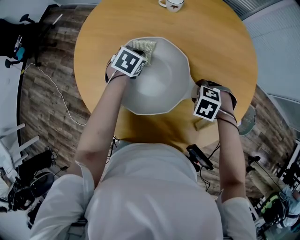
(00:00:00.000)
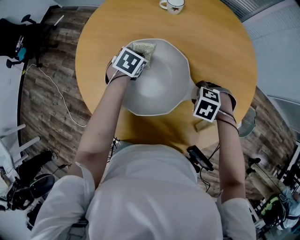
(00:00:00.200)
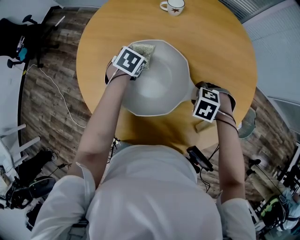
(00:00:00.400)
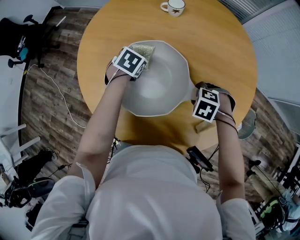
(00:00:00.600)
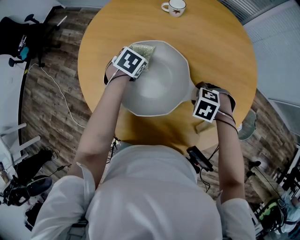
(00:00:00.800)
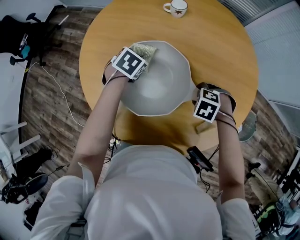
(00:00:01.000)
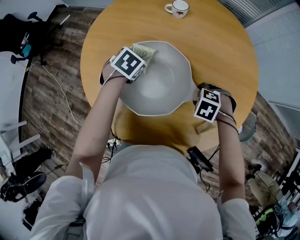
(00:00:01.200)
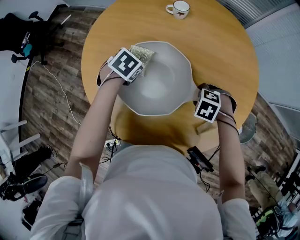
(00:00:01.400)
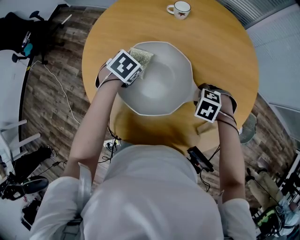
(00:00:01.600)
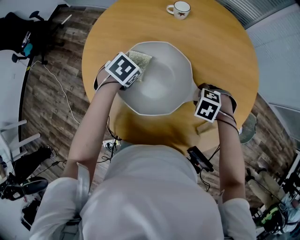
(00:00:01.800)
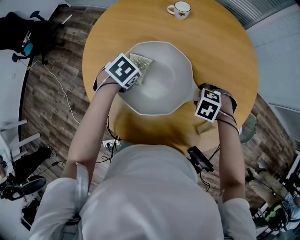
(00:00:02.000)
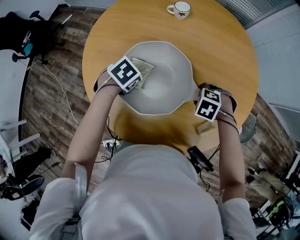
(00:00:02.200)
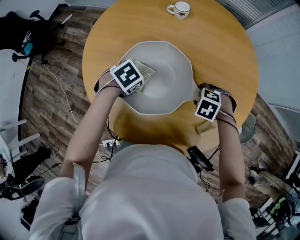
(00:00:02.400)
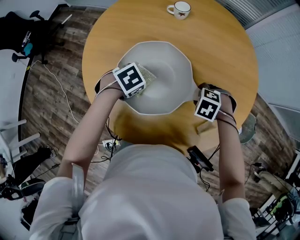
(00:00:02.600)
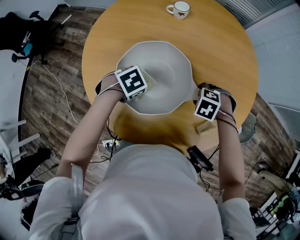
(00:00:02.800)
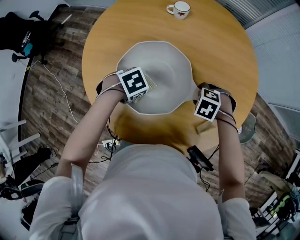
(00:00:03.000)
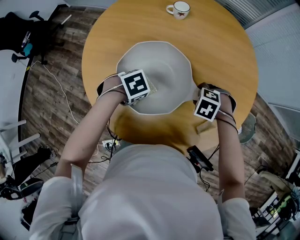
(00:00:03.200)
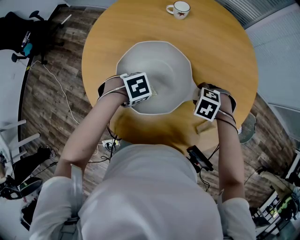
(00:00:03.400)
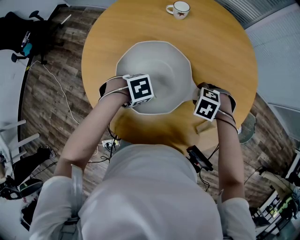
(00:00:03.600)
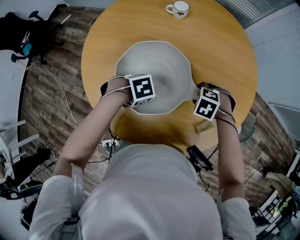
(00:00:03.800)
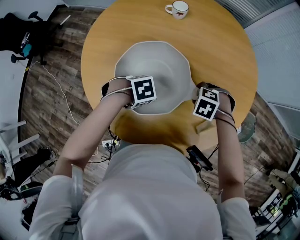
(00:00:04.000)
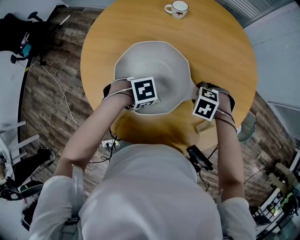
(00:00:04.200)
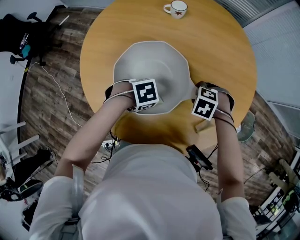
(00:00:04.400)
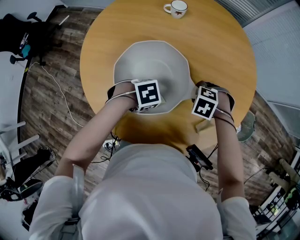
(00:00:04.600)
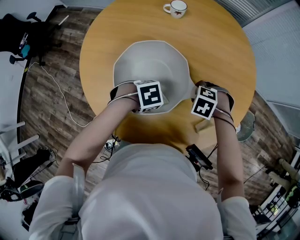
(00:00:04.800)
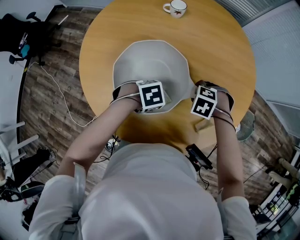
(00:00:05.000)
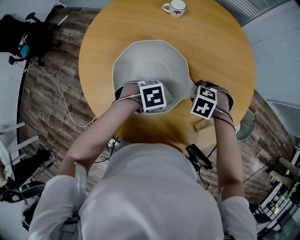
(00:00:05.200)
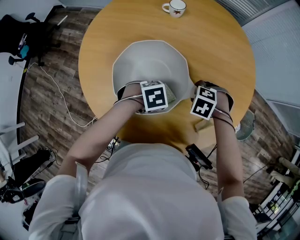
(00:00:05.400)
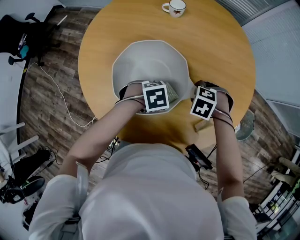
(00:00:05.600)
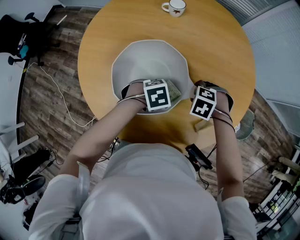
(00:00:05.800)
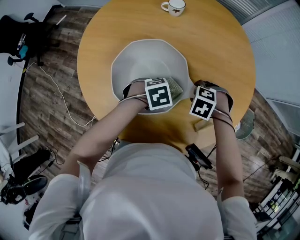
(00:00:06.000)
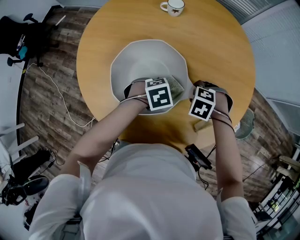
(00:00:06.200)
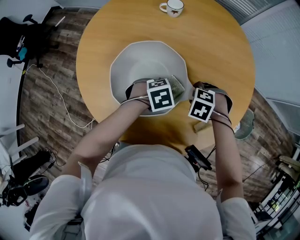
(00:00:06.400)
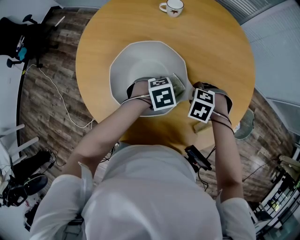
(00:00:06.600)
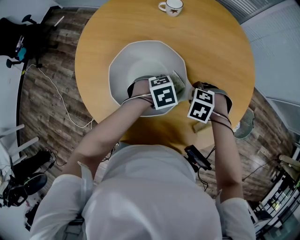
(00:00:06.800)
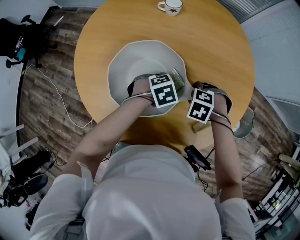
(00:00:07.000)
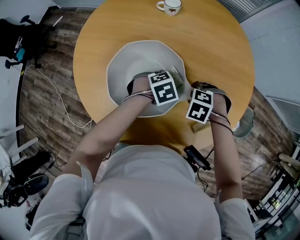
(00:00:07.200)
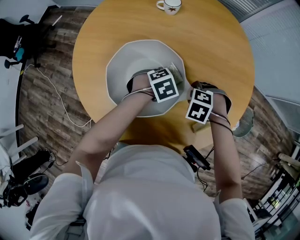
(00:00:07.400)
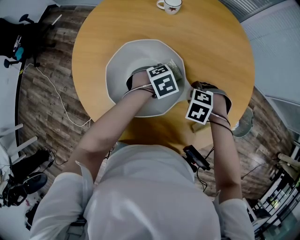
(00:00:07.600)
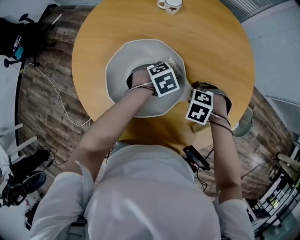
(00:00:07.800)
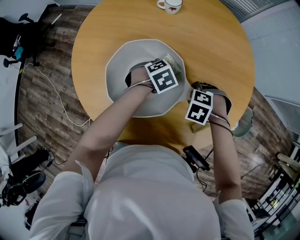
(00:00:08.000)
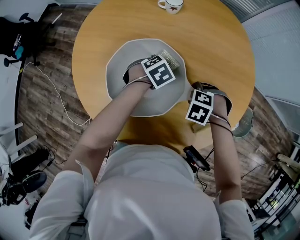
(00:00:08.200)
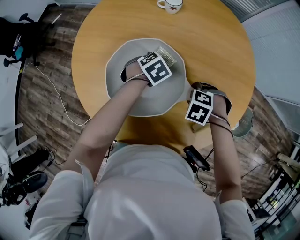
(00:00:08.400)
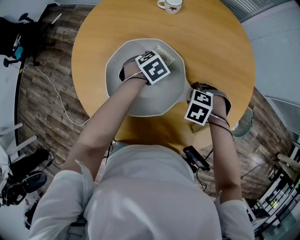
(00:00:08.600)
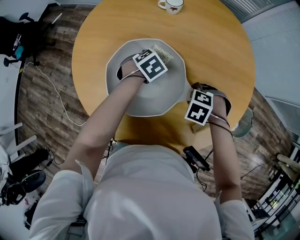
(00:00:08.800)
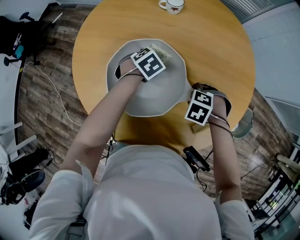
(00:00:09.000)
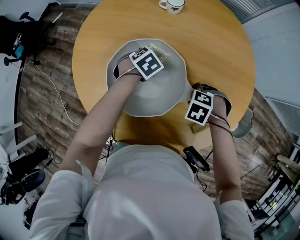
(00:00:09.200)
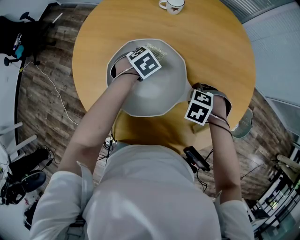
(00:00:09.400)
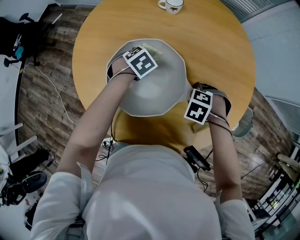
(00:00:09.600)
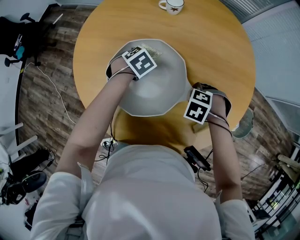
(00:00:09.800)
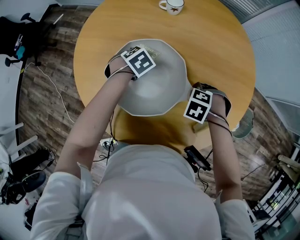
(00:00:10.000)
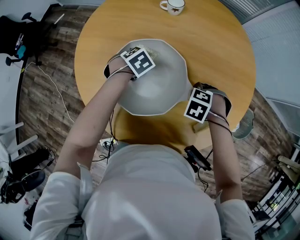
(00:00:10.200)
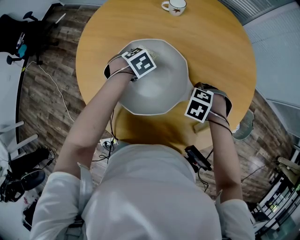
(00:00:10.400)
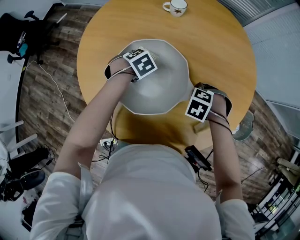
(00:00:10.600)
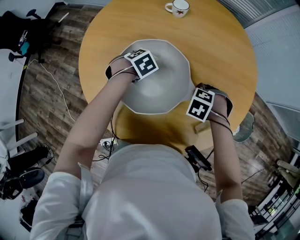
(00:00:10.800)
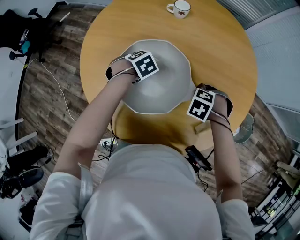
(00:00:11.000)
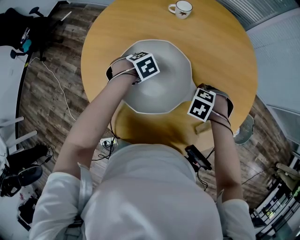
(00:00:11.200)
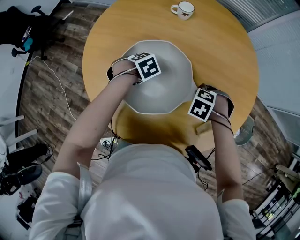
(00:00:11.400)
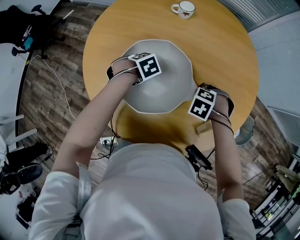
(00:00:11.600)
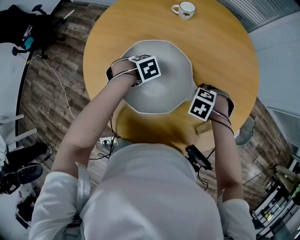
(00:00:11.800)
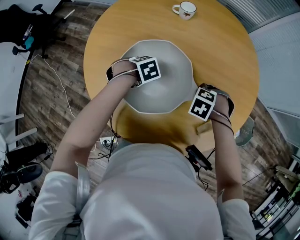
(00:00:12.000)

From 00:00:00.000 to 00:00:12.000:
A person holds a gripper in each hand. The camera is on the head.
From 00:00:00.000 to 00:00:01.600: The left gripper shifts by approximately 5 cm.
From 00:00:01.600 to 00:00:03.000: The left gripper moves roughly 10 cm, and rotates roughly 30 degrees.
From 00:00:03.000 to 00:00:04.400: The left gripper changes place by roughly 5 cm.
From 00:00:04.400 to 00:00:06.000: The left gripper moves approximately 10 cm.
From 00:00:06.000 to 00:00:07.600: The left gripper moves roughly 10 cm.
From 00:00:07.600 to 00:00:09.000: The left gripper shifts by approximately 10 cm.
From 00:00:09.000 to 00:00:10.400: The left gripper ends up approximately 5 cm from where it was.
From 00:00:10.400 to 00:00:12.000: The left gripper changes place by some 5 cm.

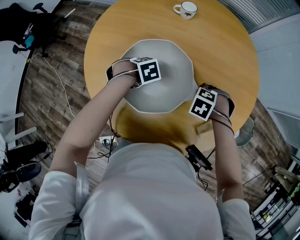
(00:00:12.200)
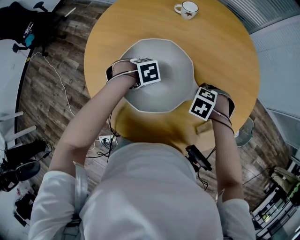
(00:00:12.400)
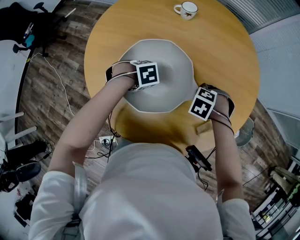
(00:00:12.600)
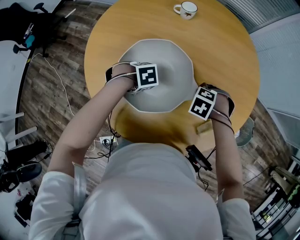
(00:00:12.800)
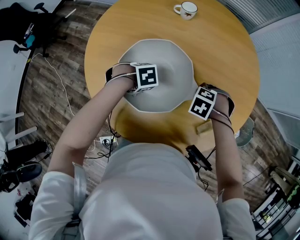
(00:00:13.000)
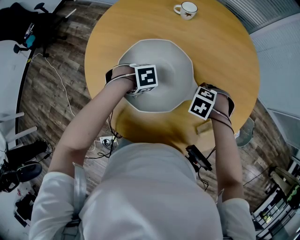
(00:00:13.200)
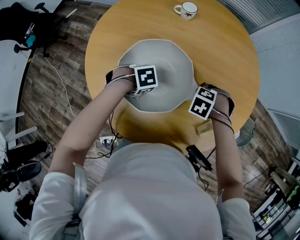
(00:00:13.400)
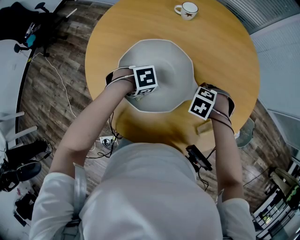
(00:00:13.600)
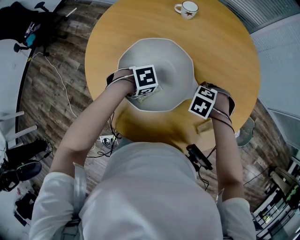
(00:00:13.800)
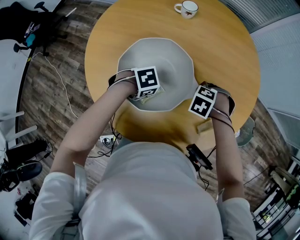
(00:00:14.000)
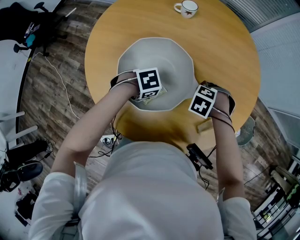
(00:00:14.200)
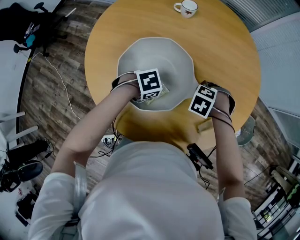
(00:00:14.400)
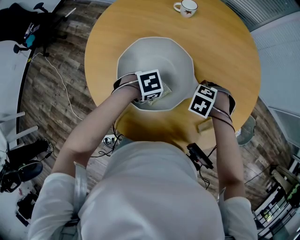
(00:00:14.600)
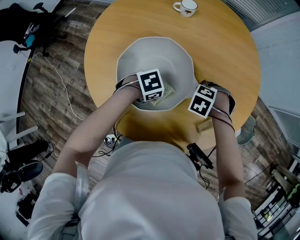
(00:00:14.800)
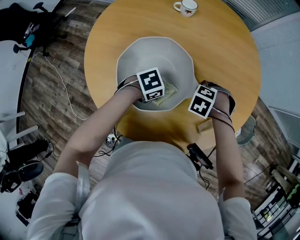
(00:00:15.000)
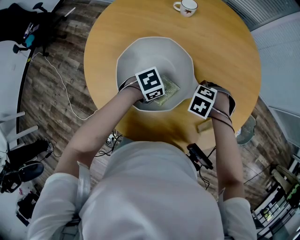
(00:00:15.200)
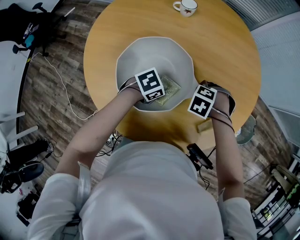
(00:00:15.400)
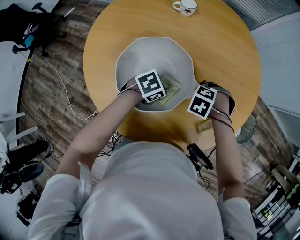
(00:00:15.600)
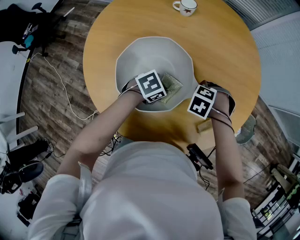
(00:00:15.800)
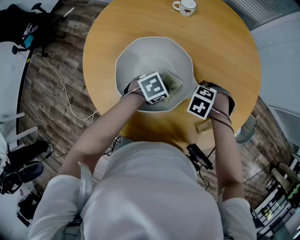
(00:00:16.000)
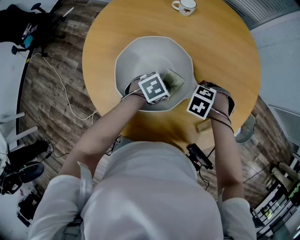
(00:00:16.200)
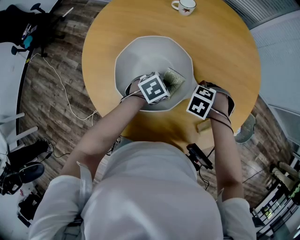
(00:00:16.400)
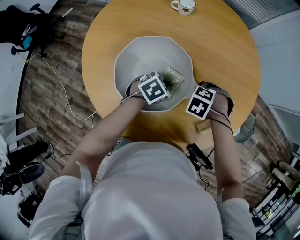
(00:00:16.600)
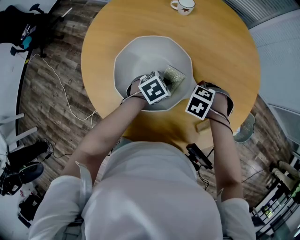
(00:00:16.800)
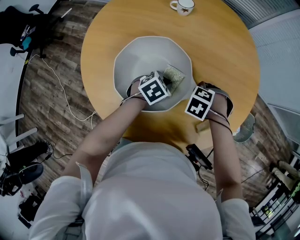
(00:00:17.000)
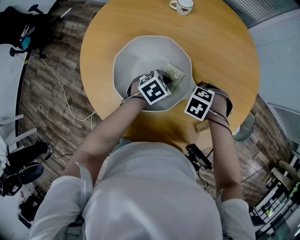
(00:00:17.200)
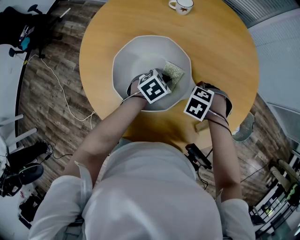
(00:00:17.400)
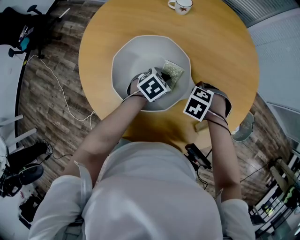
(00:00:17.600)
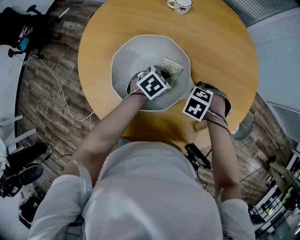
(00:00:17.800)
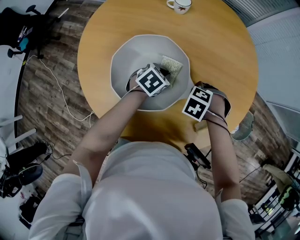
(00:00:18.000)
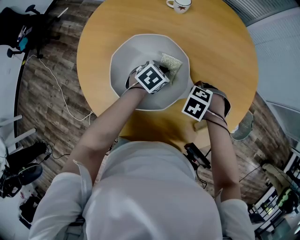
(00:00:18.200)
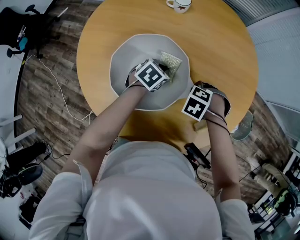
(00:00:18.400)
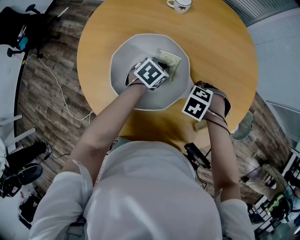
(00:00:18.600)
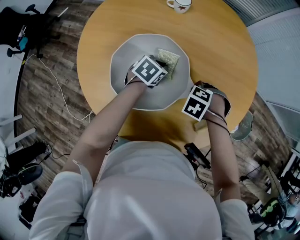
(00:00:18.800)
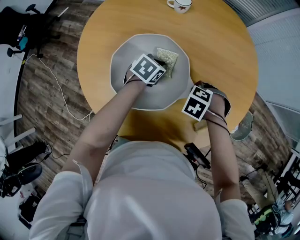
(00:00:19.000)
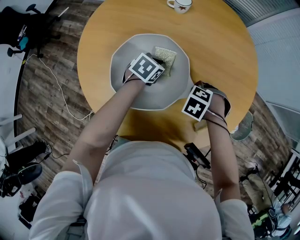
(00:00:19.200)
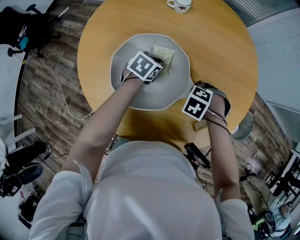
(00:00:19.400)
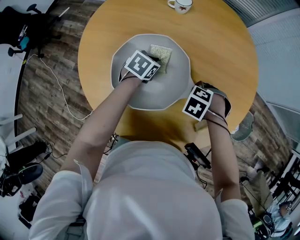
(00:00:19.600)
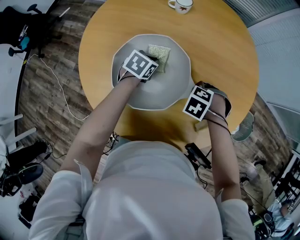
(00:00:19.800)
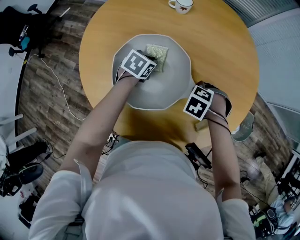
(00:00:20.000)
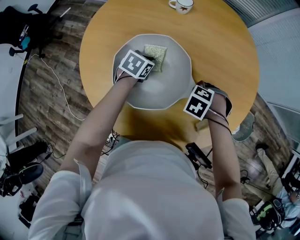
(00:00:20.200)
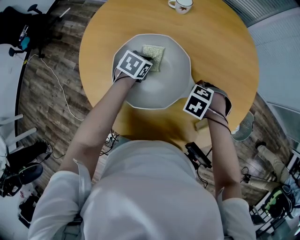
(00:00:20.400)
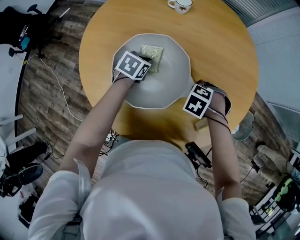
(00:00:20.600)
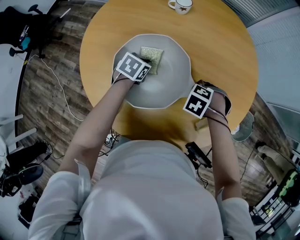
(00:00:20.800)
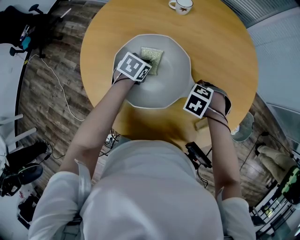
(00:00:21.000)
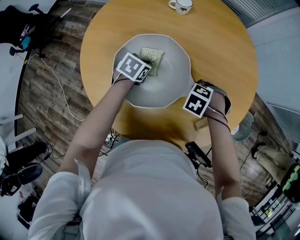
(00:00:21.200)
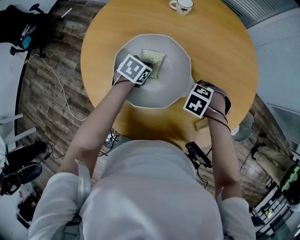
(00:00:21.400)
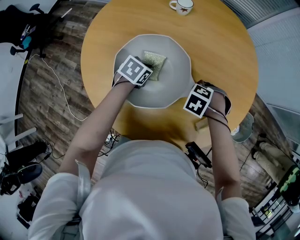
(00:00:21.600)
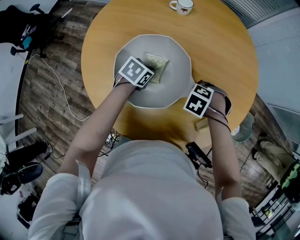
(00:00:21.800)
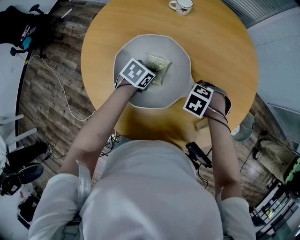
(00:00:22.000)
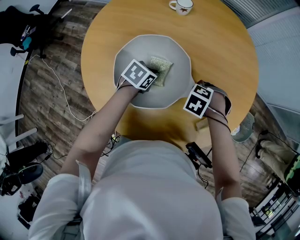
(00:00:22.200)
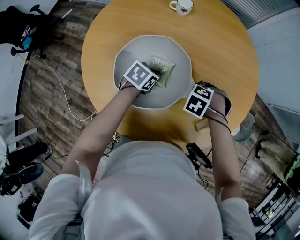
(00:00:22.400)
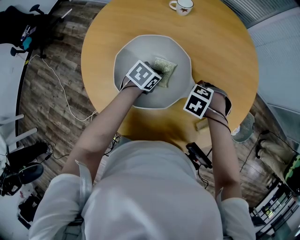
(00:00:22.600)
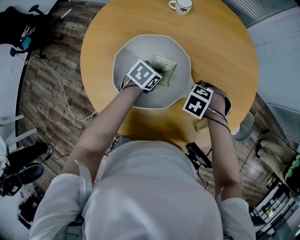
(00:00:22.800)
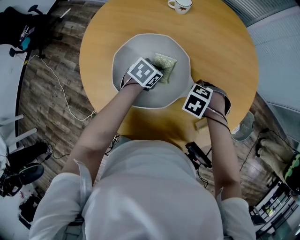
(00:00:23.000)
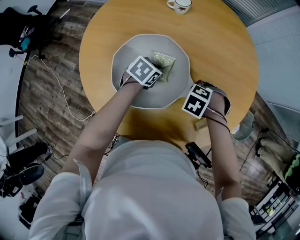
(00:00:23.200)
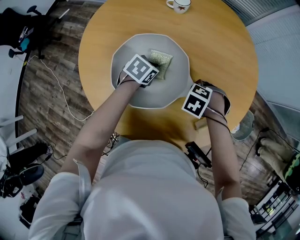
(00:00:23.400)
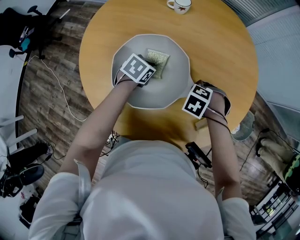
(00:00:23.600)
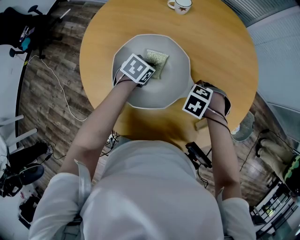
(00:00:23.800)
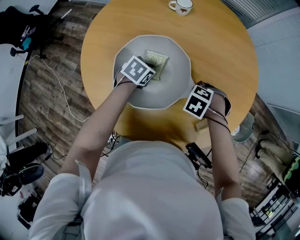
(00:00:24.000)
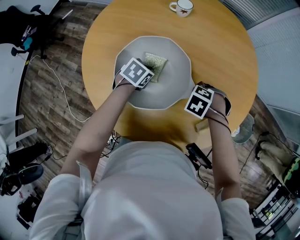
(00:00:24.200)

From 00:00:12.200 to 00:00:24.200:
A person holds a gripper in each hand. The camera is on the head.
From 00:00:12.200 to 00:00:13.800: The left gripper ends up roughly 5 cm from where it was.
From 00:00:13.800 to 00:00:15.200: The left gripper moves roughly 10 cm, and swivels about 20 degrees.
From 00:00:15.200 to 00:00:16.600: The left gripper ends up some 5 cm from where it was, and turns by some 20 degrees.
From 00:00:16.600 to 00:00:18.200: The left gripper shifts by approximately 5 cm.
From 00:00:18.200 to 00:00:19.800: The left gripper changes place by about 5 cm.
From 00:00:19.800 to 00:00:21.200: The grippers make only small movements.
From 00:00:21.200 to 00:00:22.600: The left gripper moves some 5 cm.
From 00:00:22.600 to 00:00:24.200: The grippers stay close to where they were, moving slightly.
